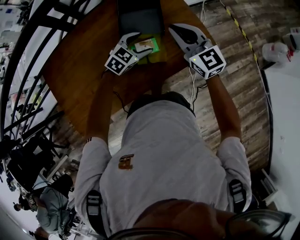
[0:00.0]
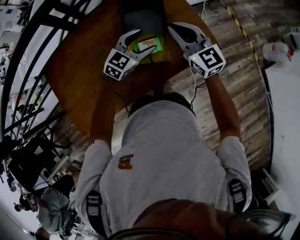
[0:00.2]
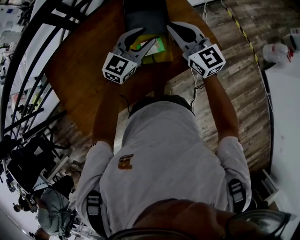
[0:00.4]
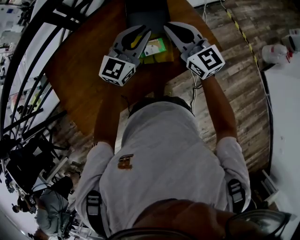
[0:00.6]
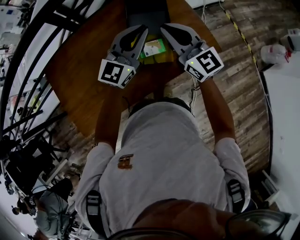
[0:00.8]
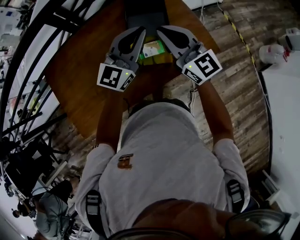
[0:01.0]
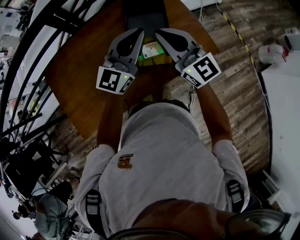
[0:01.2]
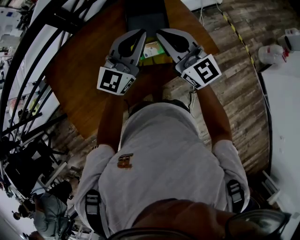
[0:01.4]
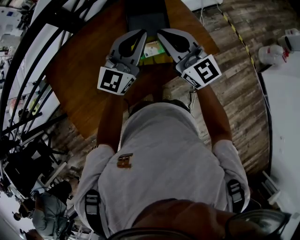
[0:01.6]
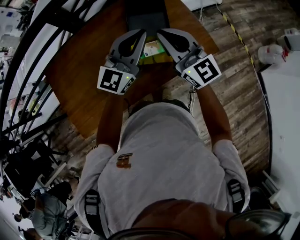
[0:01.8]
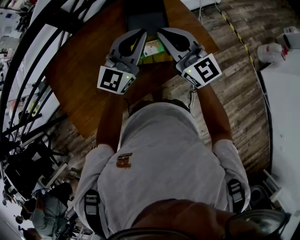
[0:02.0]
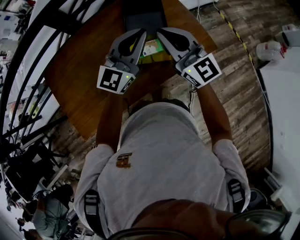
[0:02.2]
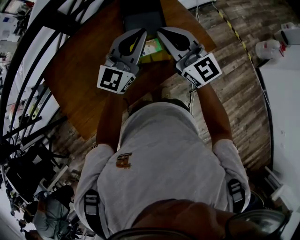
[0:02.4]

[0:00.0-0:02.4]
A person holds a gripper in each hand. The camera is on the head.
0:00.0 to 0:01.2: The left gripper is displaced upward by about 25 cm, tilts its fingers roughly 50 degrees upward, and closes up, while the right gripper heads to the left, upward and backward, covering approximately 15 cm.
0:01.2 to 0:02.4: The grippers stay close to where they were, moving slightly.

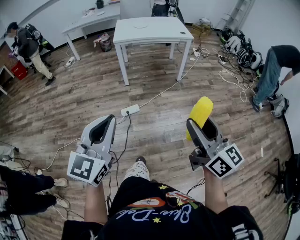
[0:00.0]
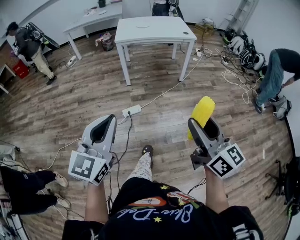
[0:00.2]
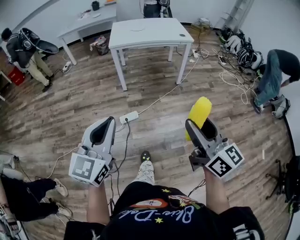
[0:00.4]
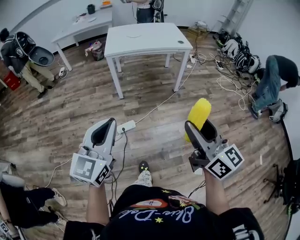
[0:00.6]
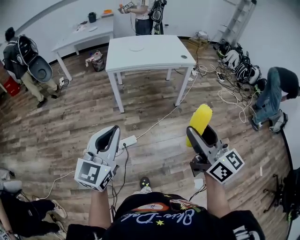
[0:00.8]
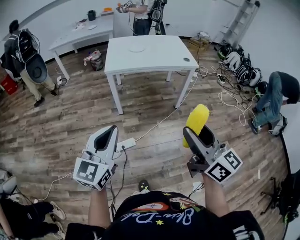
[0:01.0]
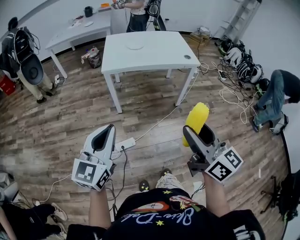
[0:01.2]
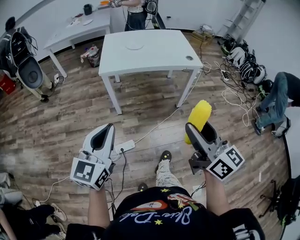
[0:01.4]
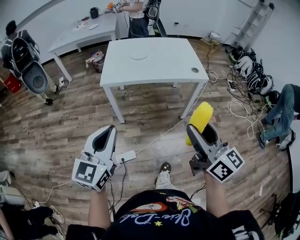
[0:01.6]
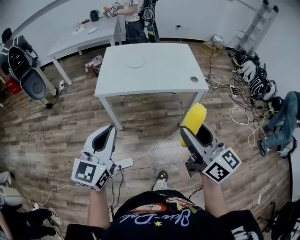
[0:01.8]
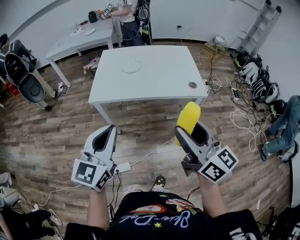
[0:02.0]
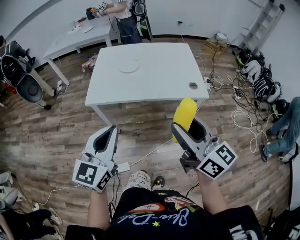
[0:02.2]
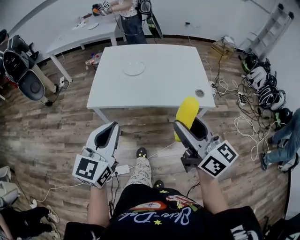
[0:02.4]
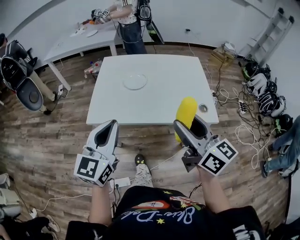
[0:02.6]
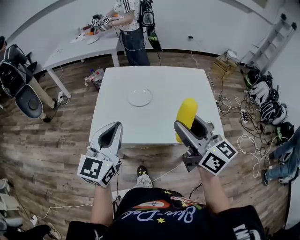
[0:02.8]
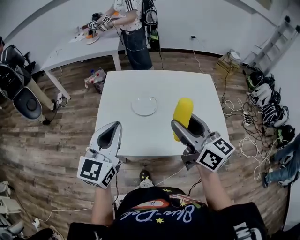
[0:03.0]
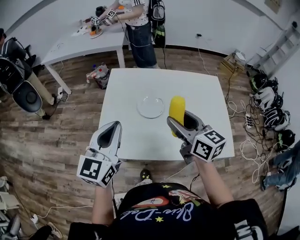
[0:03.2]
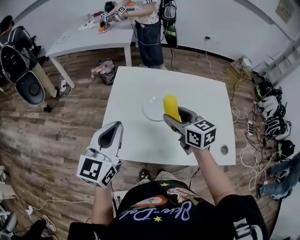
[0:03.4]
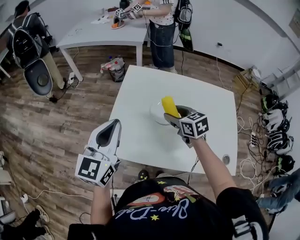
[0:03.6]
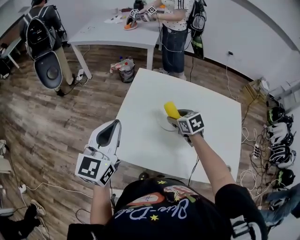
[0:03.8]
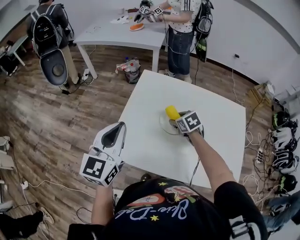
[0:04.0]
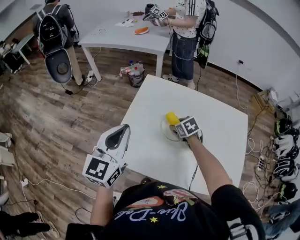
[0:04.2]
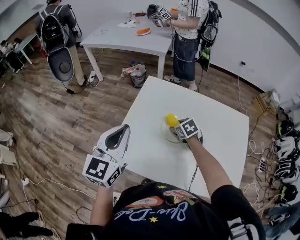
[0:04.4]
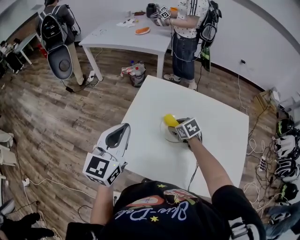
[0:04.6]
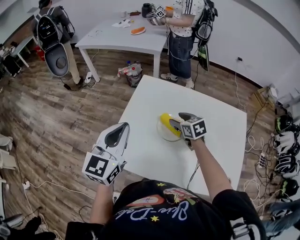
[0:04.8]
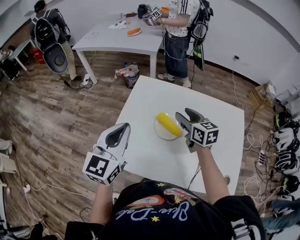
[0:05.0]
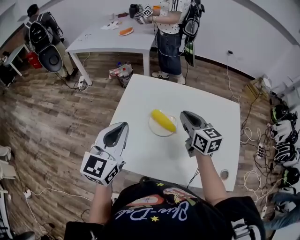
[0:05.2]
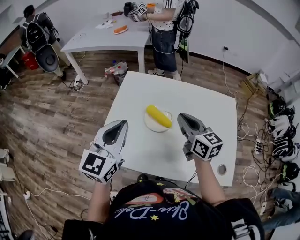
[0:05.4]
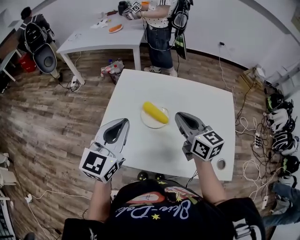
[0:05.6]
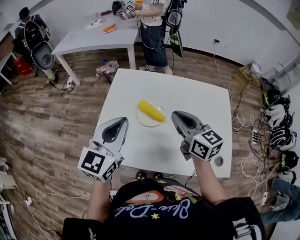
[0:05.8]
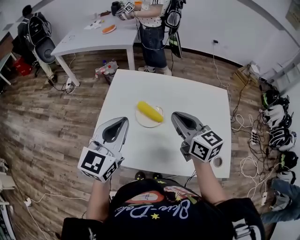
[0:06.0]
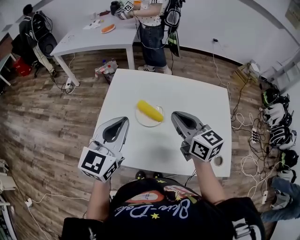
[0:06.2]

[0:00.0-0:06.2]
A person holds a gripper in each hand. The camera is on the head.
0:00.0 to 0:01.6: The two grippers travel together, forward, about 50 cm.
0:01.6 to 0:03.2: Both grippers are carried forward, approximately 60 cm. The right gripper turns by approximately 20 degrees.
0:03.2 to 0:04.6: The left gripper goes roughly 5 cm forward, while the right gripper heads downward and forward, covering approximately 30 cm, and tilts its fingers roughly 40 degrees downward.
0:04.6 to 0:06.2: The left gripper goes some 10 cm to the right, while the right gripper heads upward and backward, covering some 25 cm, angles its fingers upward, by roughly 40 degrees, and closes its fingers.

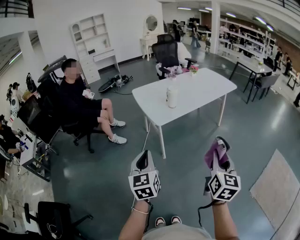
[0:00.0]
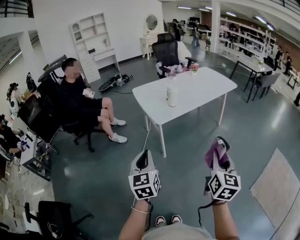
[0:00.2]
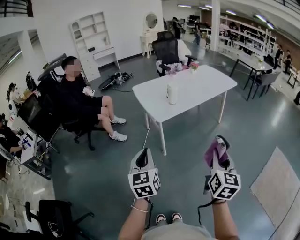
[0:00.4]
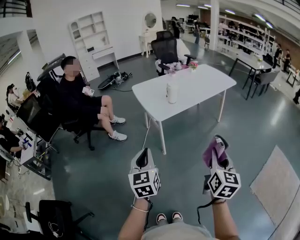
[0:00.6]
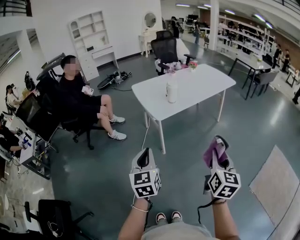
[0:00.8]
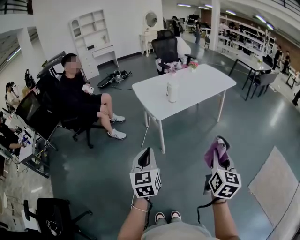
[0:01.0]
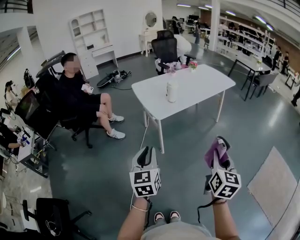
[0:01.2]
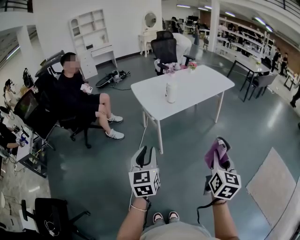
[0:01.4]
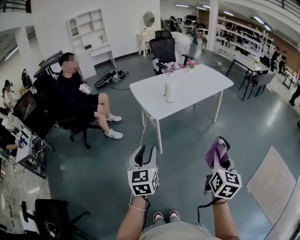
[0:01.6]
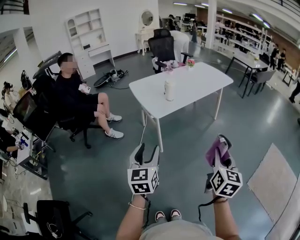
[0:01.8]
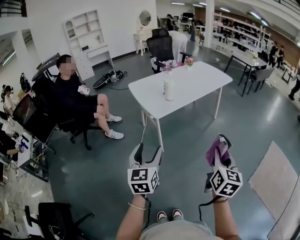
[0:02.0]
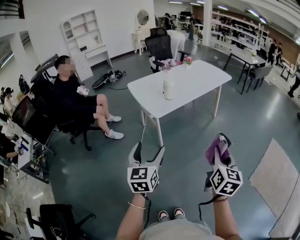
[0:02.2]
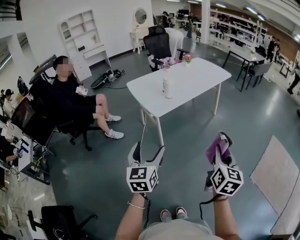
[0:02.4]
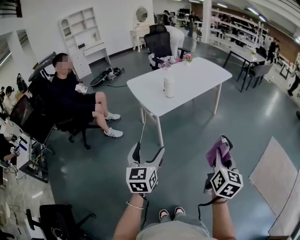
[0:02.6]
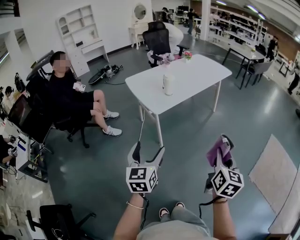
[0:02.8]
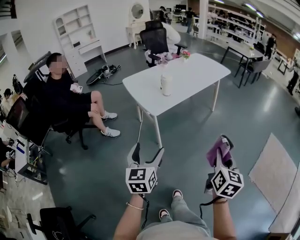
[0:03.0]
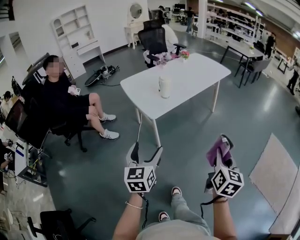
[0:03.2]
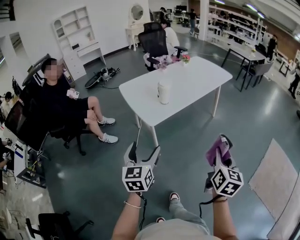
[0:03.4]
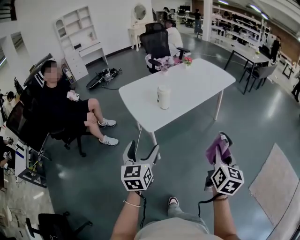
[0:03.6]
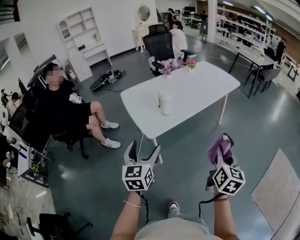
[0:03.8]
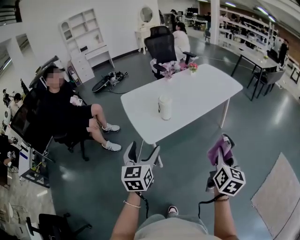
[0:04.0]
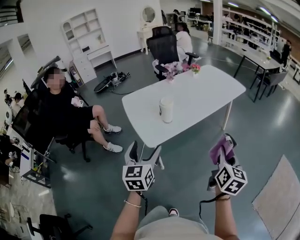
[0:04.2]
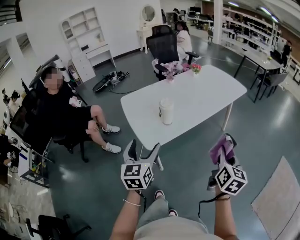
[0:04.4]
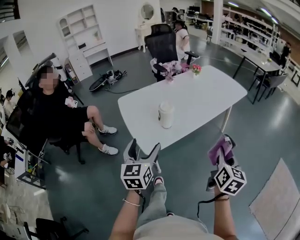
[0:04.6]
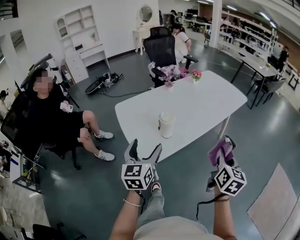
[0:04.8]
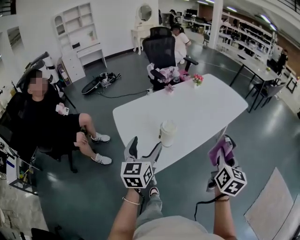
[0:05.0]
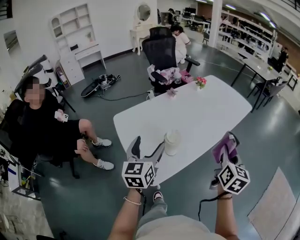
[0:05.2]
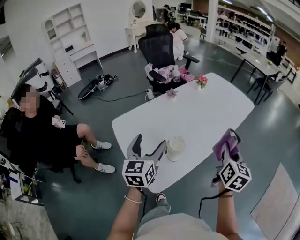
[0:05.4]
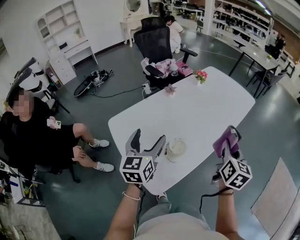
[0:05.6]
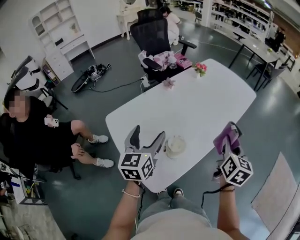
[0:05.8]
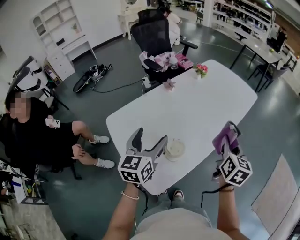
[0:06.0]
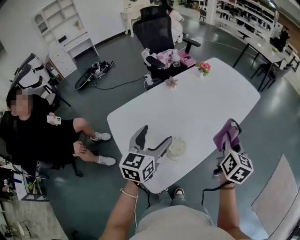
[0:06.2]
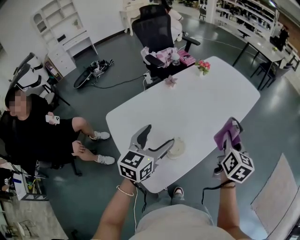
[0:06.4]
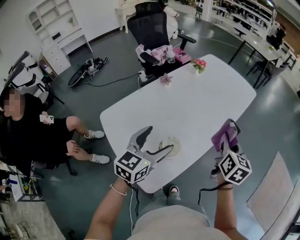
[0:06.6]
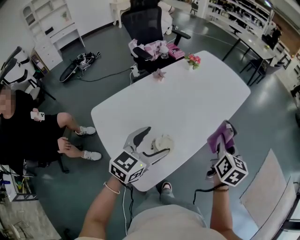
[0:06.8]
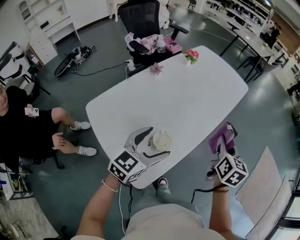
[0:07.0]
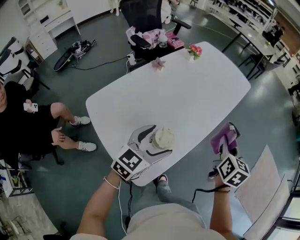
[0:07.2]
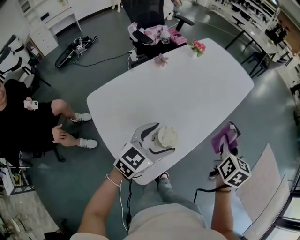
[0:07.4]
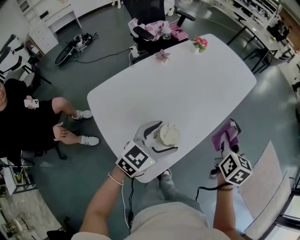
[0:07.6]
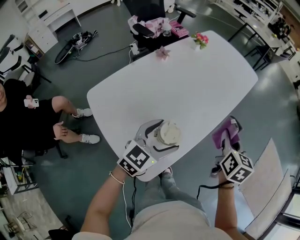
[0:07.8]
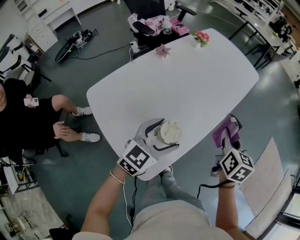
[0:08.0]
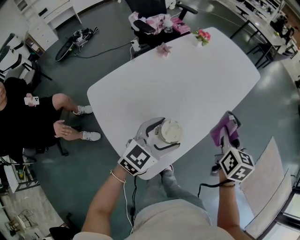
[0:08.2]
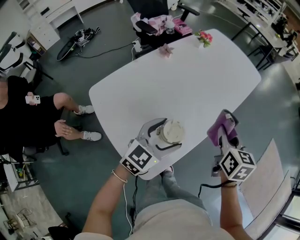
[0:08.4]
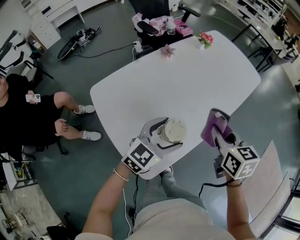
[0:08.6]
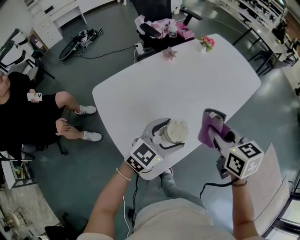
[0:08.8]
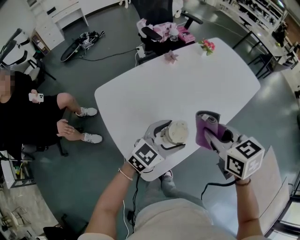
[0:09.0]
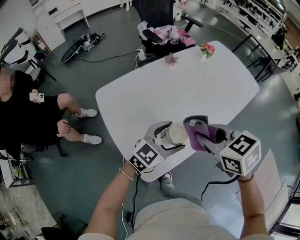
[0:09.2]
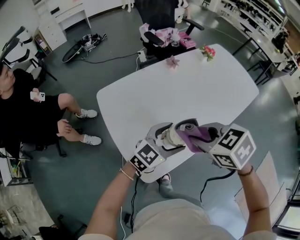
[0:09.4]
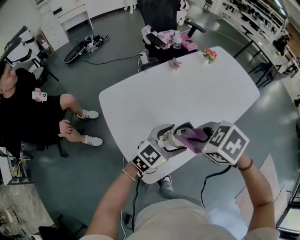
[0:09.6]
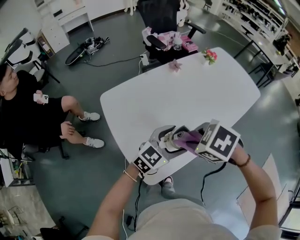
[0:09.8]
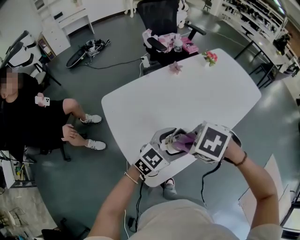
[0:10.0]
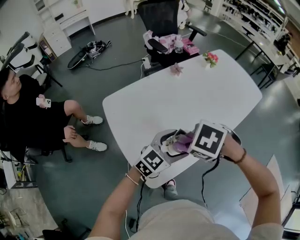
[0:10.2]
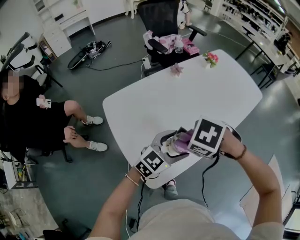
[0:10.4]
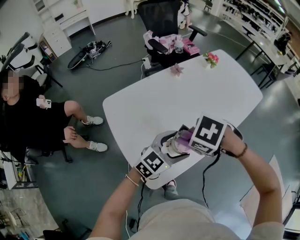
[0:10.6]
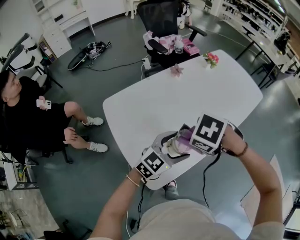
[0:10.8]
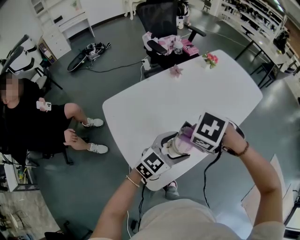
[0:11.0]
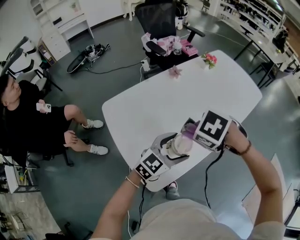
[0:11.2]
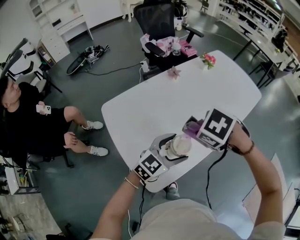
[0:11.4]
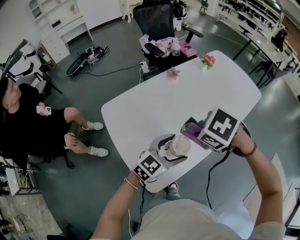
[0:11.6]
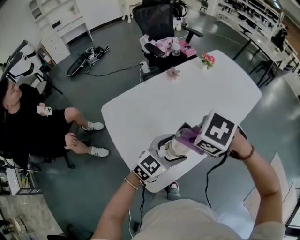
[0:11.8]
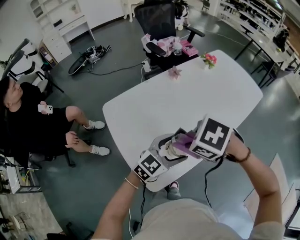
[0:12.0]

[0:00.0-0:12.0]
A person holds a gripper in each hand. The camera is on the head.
0:00.0 to 0:01.6: The grippers make only small movements.
0:01.6 to 0:03.0: The left gripper ends up approximately 5 cm from where it was, and opens.
0:03.0 to 0:04.4: The grippers both shift forward by roughly 30 cm.
0:04.4 to 0:06.0: The grippers both shift forward by some 35 cm.
0:06.0 to 0:07.6: The right gripper changes place by some 5 cm. Meanwhile the left gripper goes approximately 15 cm to the right and downward, and rotates roughly 40 degrees.
0:07.6 to 0:09.0: The right gripper moves to the left and backward, approximately 15 cm, and turns by approximately 50 degrees.
0:09.0 to 0:10.4: The right gripper changes place by roughly 10 cm, and points its fingers about 40 degrees further downward.

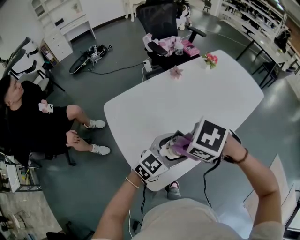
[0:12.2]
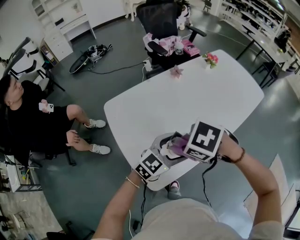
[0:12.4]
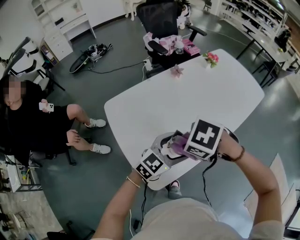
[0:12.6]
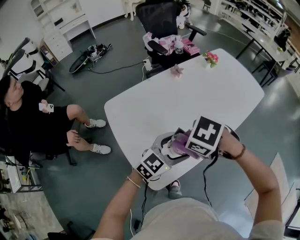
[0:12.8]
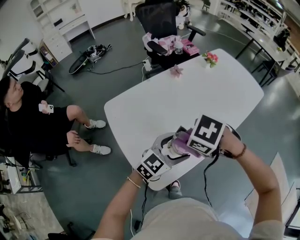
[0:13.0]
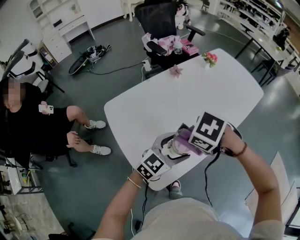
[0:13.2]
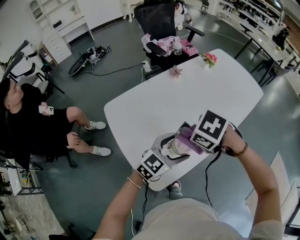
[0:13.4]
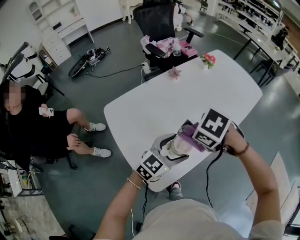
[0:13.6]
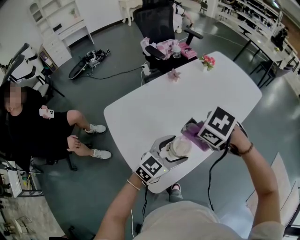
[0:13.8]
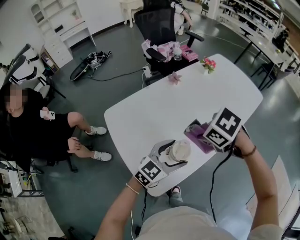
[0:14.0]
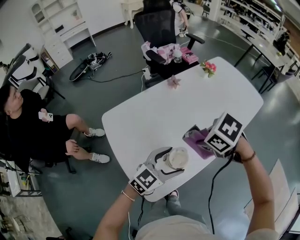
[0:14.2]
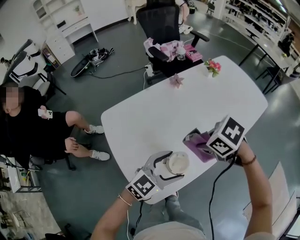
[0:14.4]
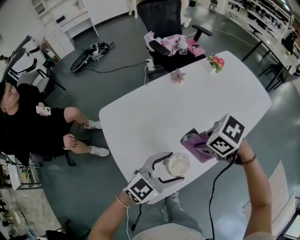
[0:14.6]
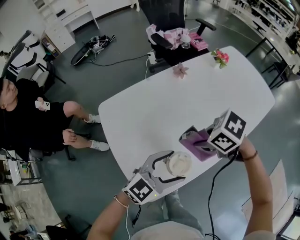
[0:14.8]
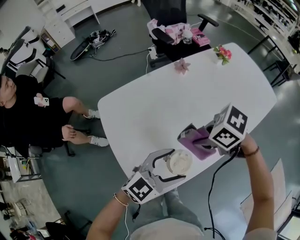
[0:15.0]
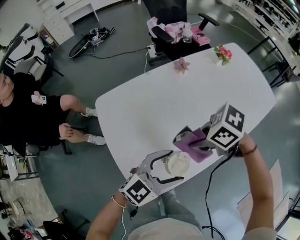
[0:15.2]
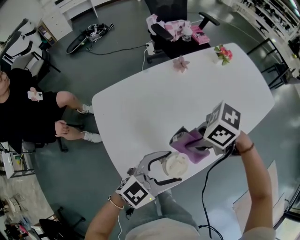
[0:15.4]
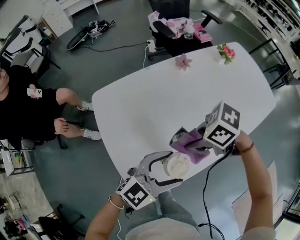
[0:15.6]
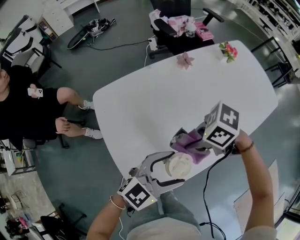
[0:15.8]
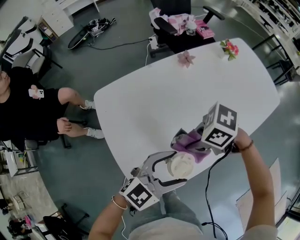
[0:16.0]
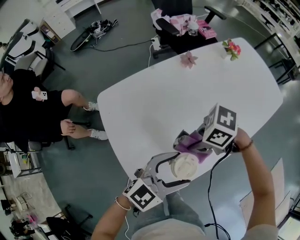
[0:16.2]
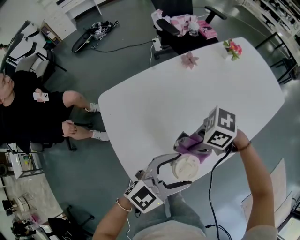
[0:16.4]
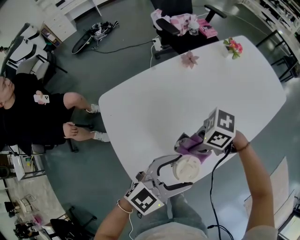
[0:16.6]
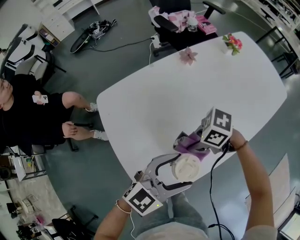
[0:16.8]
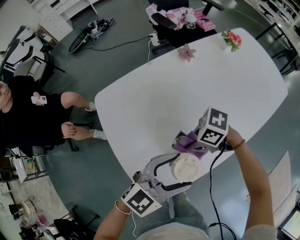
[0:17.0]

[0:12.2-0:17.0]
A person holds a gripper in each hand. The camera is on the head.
0:12.2 to 0:13.8: The right gripper ends up about 5 cm from where it was.
0:13.8 to 0:15.4: The right gripper shifts some 5 cm downward, and changes its angle by some 30 degrees.
0:15.4 to 0:17.0: The right gripper travels downward by approximately 10 cm.
